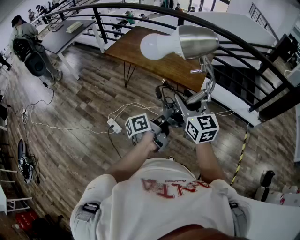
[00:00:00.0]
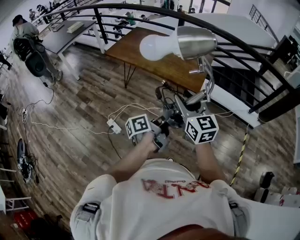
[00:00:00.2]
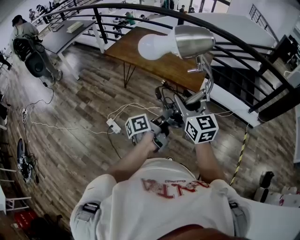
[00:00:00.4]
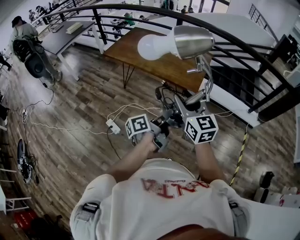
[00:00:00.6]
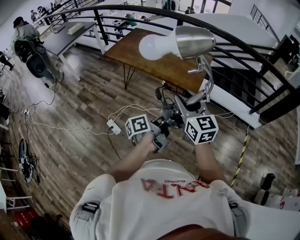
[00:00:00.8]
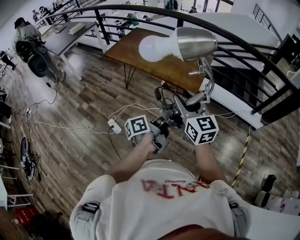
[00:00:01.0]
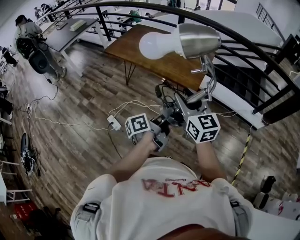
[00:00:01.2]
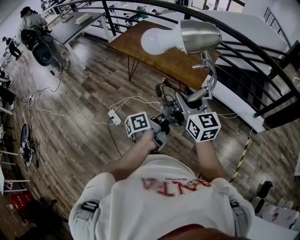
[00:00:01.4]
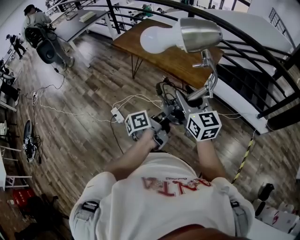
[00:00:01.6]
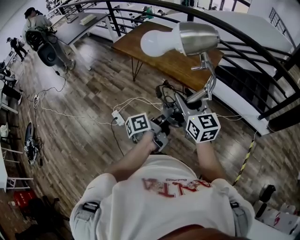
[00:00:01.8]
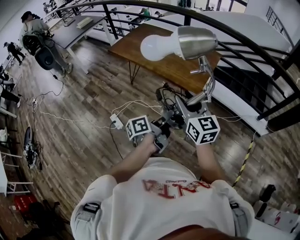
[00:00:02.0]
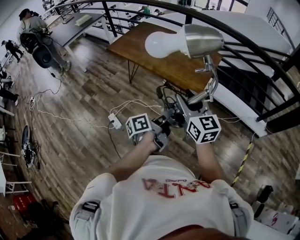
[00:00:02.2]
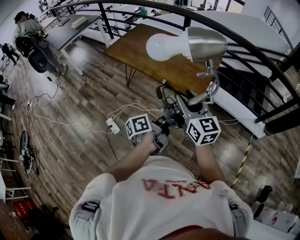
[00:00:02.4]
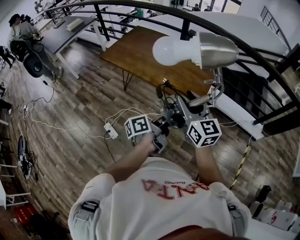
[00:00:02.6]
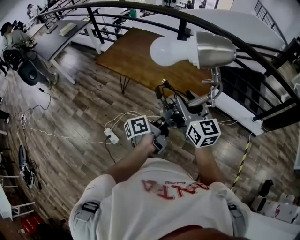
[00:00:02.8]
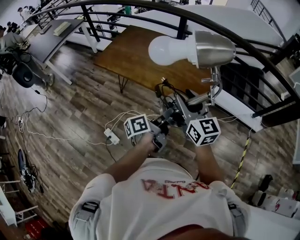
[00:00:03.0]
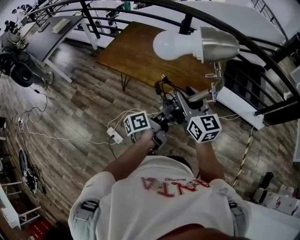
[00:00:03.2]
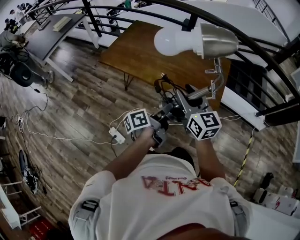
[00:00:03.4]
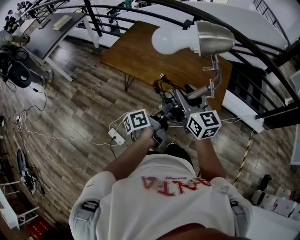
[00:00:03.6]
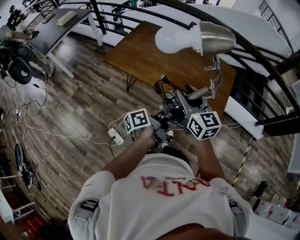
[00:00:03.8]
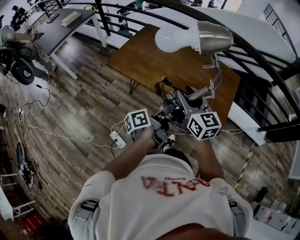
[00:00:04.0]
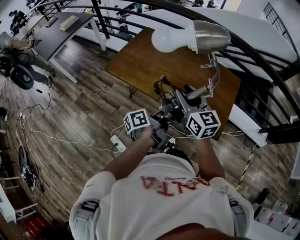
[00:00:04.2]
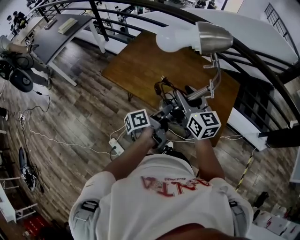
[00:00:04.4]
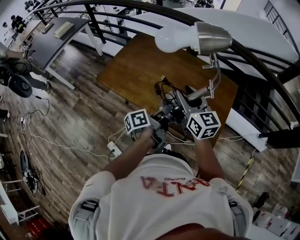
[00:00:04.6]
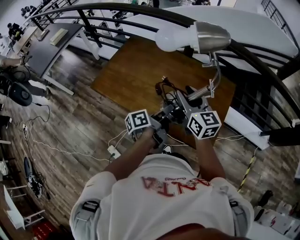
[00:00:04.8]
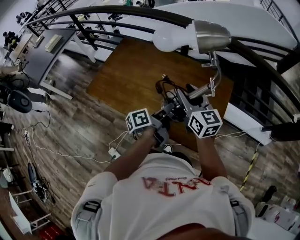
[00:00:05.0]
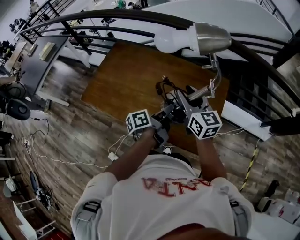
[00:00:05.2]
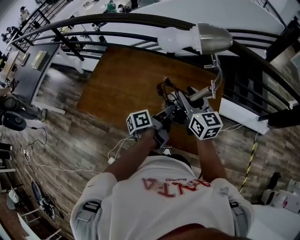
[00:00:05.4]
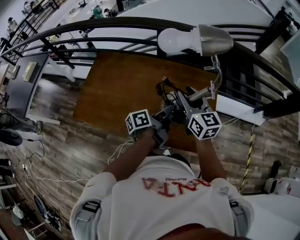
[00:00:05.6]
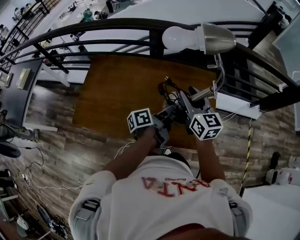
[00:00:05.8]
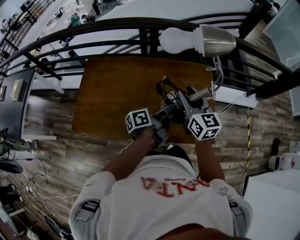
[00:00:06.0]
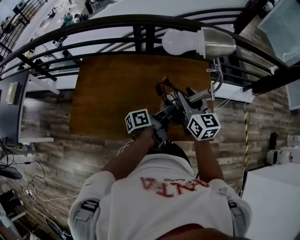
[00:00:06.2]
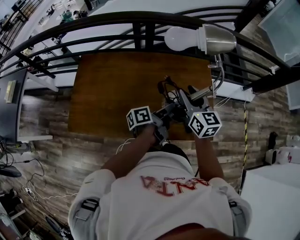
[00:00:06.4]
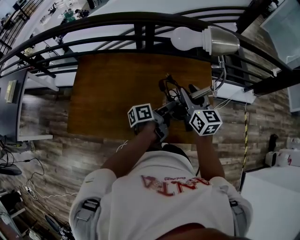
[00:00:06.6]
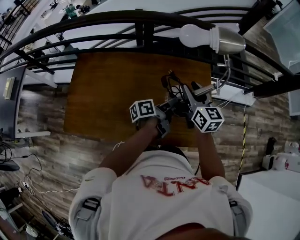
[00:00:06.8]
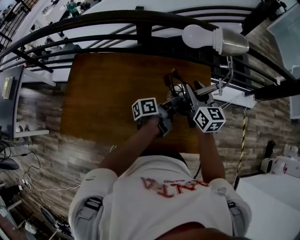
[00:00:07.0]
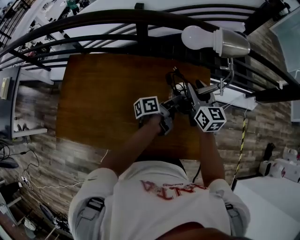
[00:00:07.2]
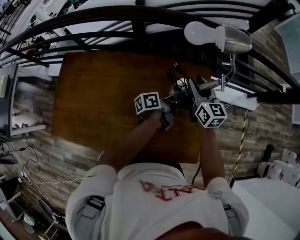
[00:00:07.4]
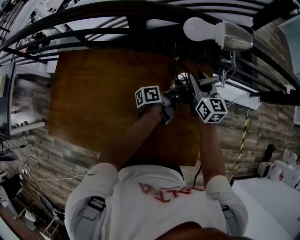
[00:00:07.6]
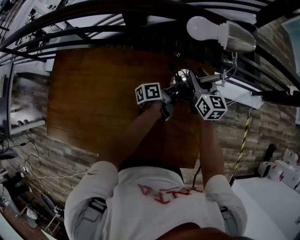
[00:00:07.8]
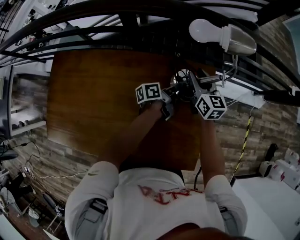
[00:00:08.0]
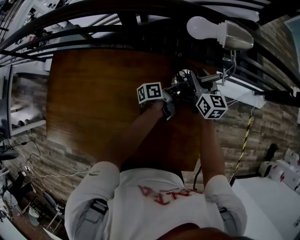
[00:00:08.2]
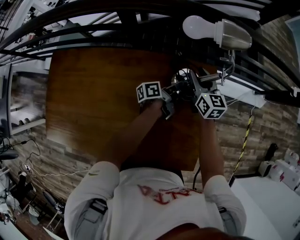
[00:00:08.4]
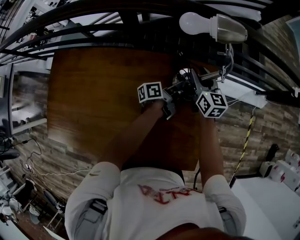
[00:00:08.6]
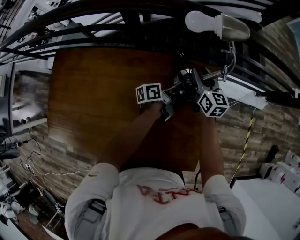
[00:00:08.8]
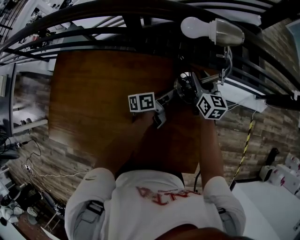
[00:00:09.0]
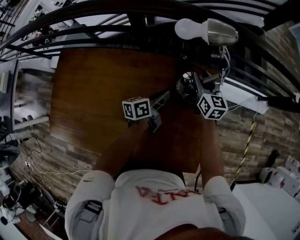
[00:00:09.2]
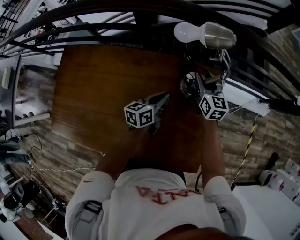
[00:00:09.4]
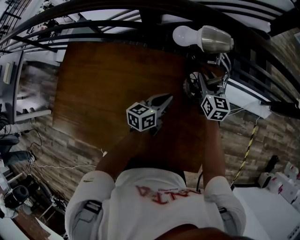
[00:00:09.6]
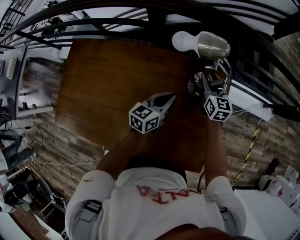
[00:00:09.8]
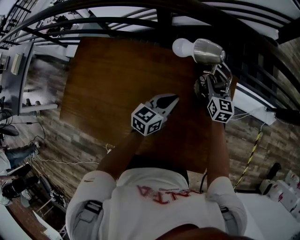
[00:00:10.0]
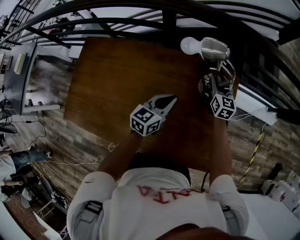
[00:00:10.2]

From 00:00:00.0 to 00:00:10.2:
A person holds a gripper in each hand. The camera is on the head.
From 00:00:00.0 to 00:00:01.4: The grippers both shift to the right by some 5 cm.
From 00:00:01.4 to 00:00:03.0: The right gripper goes about 20 cm forward; the left gripper is displaced forward and to the left by approximately 20 cm.
From 00:00:03.0 to 00:00:04.4: Both grippers travel together forward and to the left, roughly 25 cm.
From 00:00:04.4 to 00:00:05.8: The right gripper moves about 20 cm, and rotates approximately 30 degrees. The left gripper changes place by roughly 20 cm, and changes its angle by roughly 30 degrees.
From 00:00:05.8 to 00:00:07.2: Both grippers move forward, to the right and downward, roughly 20 cm.
From 00:00:07.2 to 00:00:08.8: The two grippers go some 15 cm forward and downward.
From 00:00:08.8 to 00:00:10.2: The left gripper heads backward, to the left and upward, covering some 20 cm, rolls clockwise, seen from behind, by some 50 degrees, and closes its fingers.

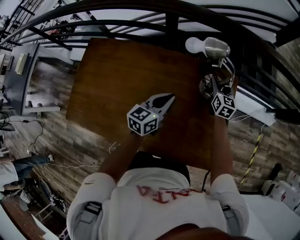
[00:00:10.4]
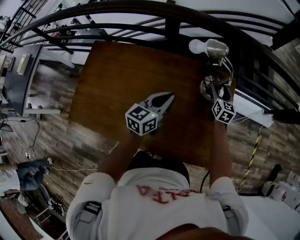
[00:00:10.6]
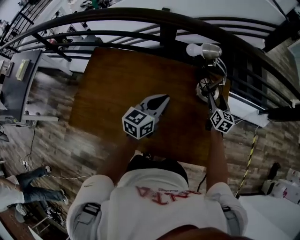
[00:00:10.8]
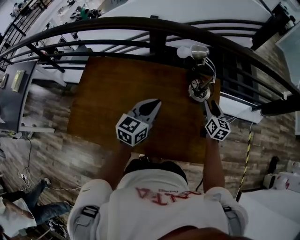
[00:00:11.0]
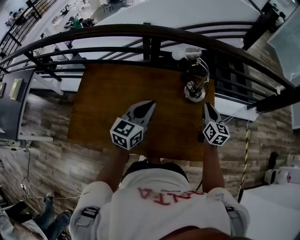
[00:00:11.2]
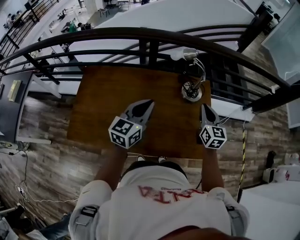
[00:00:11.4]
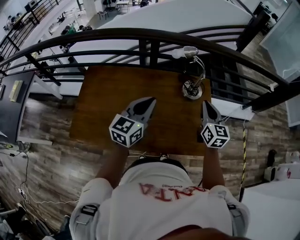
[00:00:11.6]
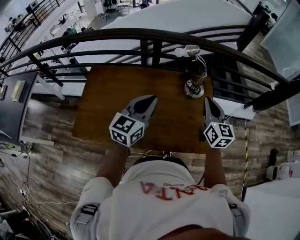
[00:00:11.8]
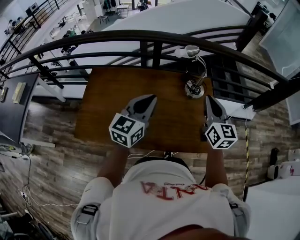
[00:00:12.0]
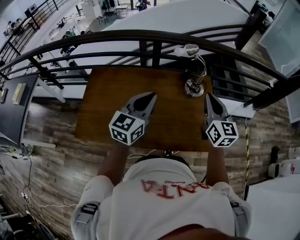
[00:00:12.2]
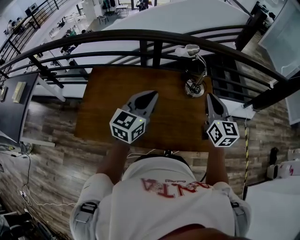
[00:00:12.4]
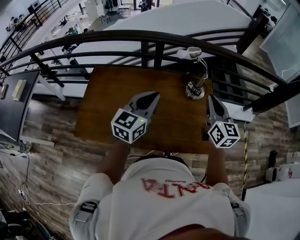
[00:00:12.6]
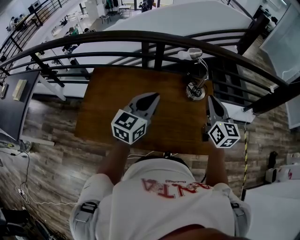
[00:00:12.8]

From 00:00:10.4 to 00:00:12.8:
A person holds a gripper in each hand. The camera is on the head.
From 00:00:10.4 to 00:00:11.6: The right gripper heads backward and upward, covering some 35 cm, and closes up. Meanwhile the left gripper heads upward and backward, covering some 20 cm, and turns by approximately 20 degrees.
From 00:00:11.6 to 00:00:12.8: The right gripper heads upward, covering some 10 cm.

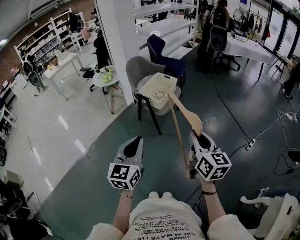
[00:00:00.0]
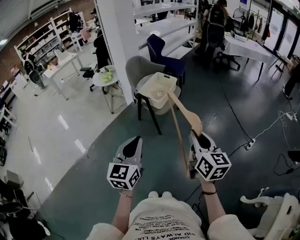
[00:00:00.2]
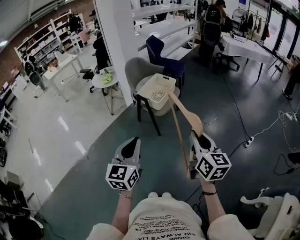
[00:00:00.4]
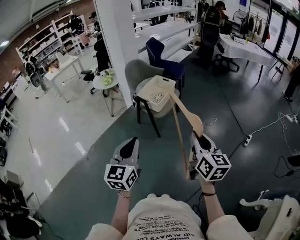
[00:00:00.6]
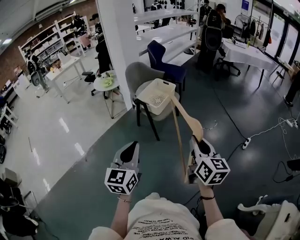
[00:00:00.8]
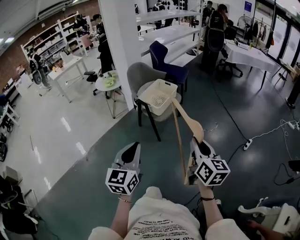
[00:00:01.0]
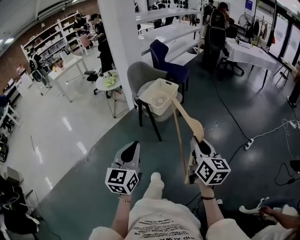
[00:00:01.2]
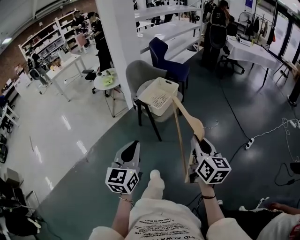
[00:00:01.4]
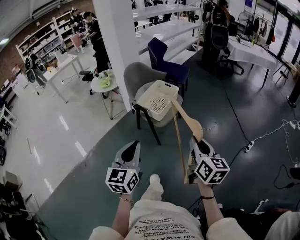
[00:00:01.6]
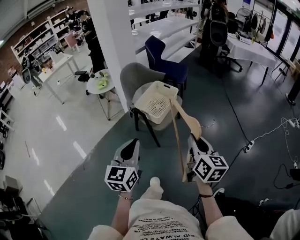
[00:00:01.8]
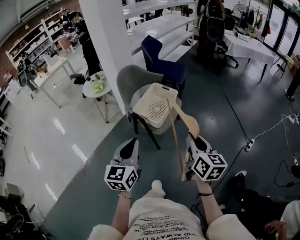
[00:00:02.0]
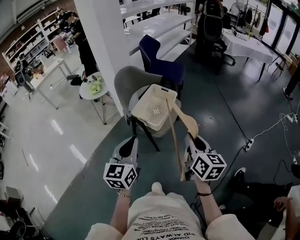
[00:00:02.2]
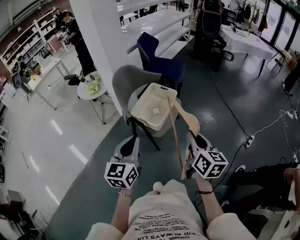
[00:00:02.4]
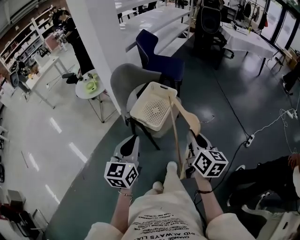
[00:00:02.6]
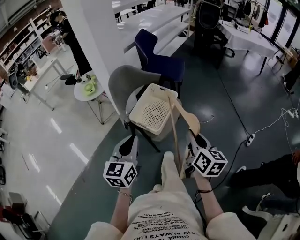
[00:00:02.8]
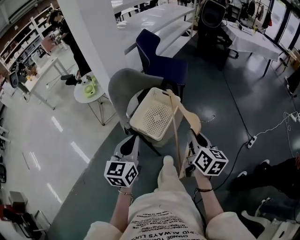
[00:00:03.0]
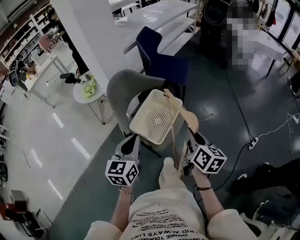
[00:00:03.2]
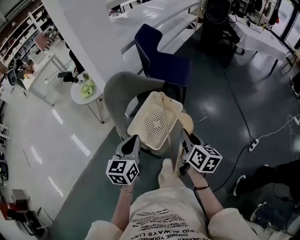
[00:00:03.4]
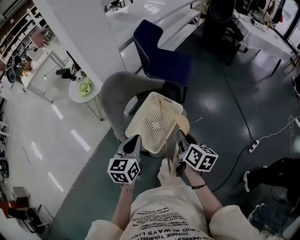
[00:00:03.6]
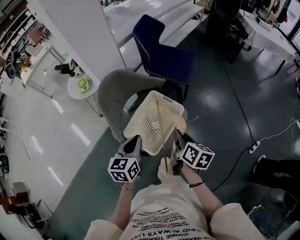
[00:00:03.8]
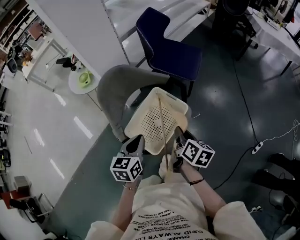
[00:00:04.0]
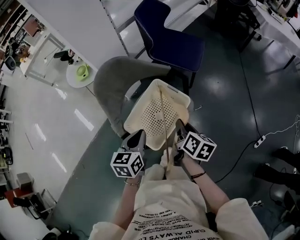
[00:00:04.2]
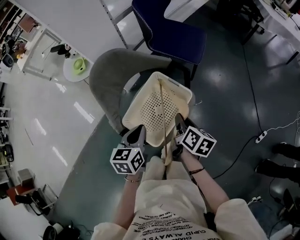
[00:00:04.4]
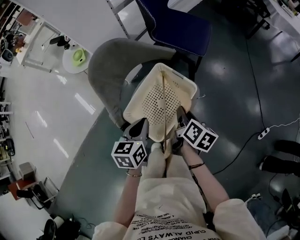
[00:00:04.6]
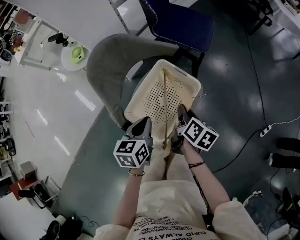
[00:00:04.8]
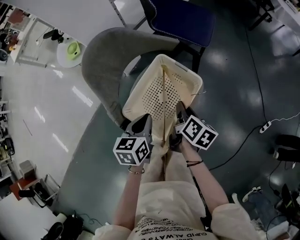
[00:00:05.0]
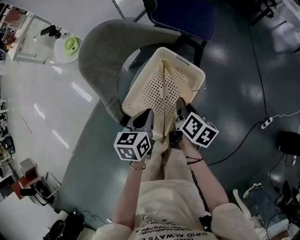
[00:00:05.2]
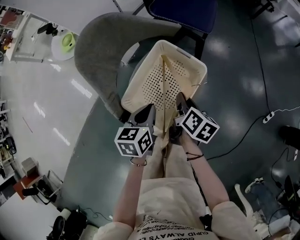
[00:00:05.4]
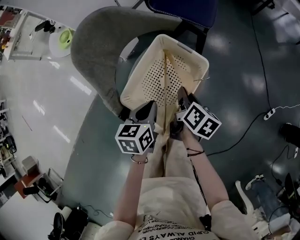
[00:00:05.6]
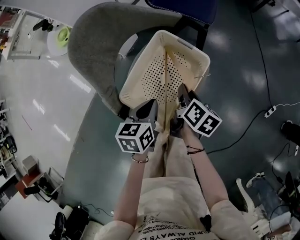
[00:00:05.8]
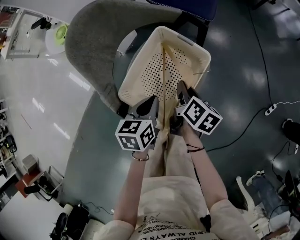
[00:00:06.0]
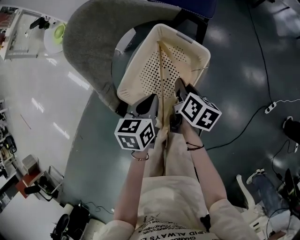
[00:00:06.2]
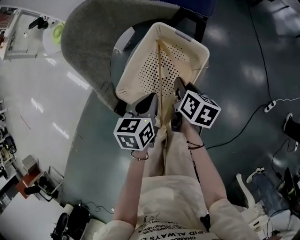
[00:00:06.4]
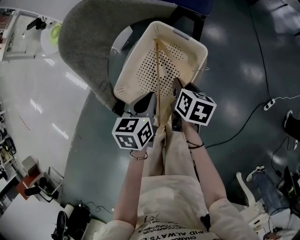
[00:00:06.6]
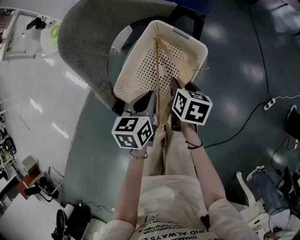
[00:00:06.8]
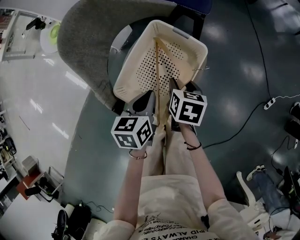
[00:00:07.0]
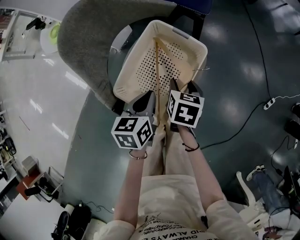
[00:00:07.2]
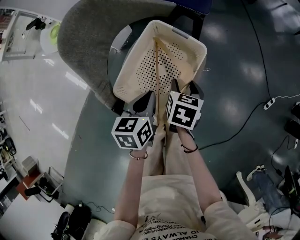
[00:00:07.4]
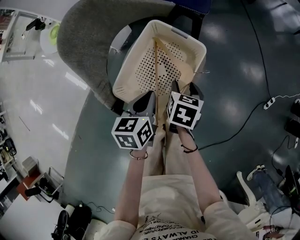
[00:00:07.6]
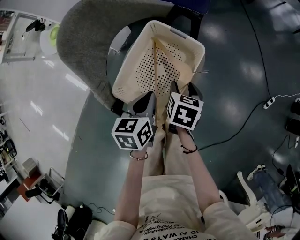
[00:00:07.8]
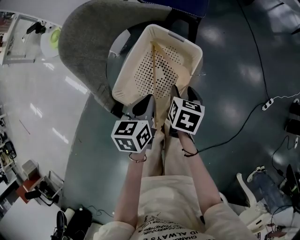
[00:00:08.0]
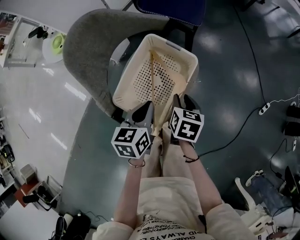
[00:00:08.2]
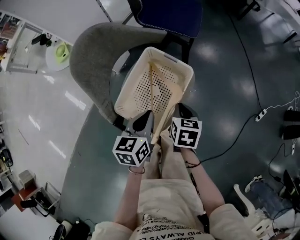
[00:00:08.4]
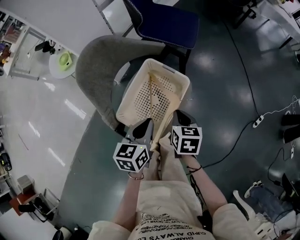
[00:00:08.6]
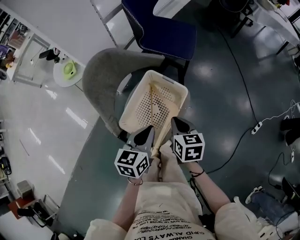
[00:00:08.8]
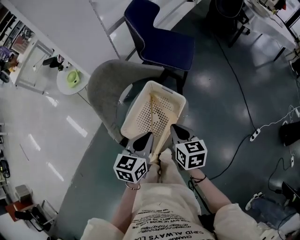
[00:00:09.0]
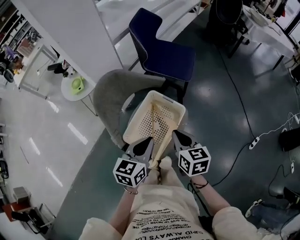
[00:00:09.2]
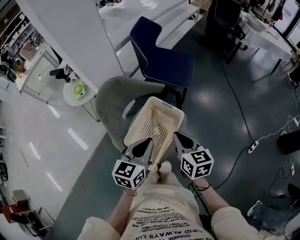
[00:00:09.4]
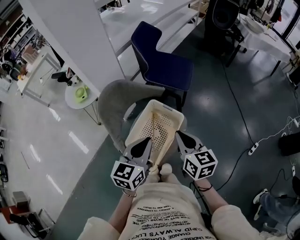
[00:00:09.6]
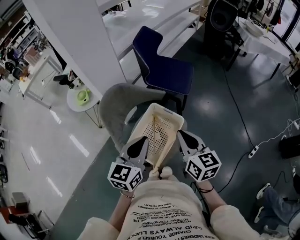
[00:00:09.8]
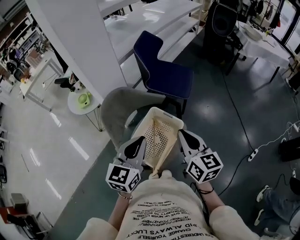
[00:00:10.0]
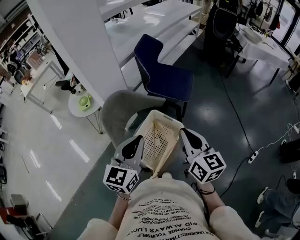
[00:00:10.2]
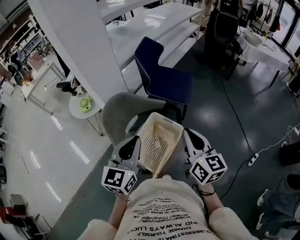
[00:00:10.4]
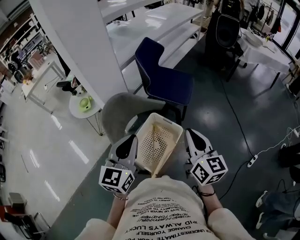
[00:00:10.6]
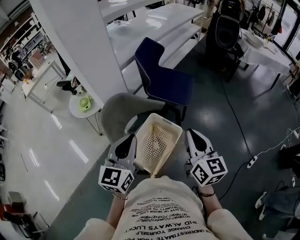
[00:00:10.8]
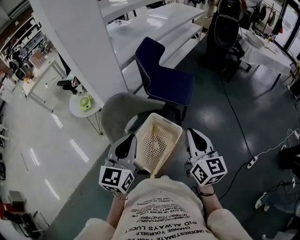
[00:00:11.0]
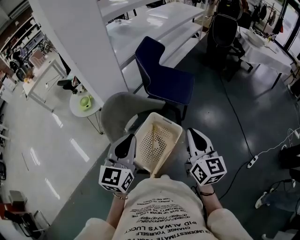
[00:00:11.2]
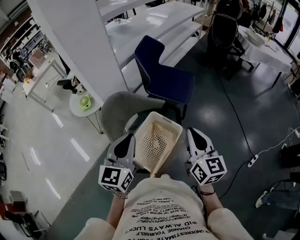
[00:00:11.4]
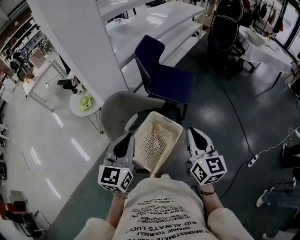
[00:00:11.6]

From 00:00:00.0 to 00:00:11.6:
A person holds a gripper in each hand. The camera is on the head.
From 00:00:00.0 to 00:00:01.4: The right gripper is displaced forward by roughly 5 cm.
From 00:00:01.4 to 00:00:02.8: The grippers both shift forward by approximately 30 cm.
From 00:00:02.8 to 00:00:04.4: The grippers both shift forward and downward by approximately 30 cm. The right gripper changes its angle by about 30 degrees. Meanwhile the left gripper changes its angle by approximately 30 degrees.
From 00:00:04.4 to 00:00:05.8: Both grippers travel together downward, approximately 10 cm.
From 00:00:05.8 to 00:00:07.2: The right gripper swivels about 30 degrees, and opens its fingers.
From 00:00:07.2 to 00:00:08.8: Both grippers travel together upward, approximately 10 cm. The right gripper rotates some 20 degrees, and closes its fingers.
From 00:00:08.8 to 00:00:10.2: Both grippers move upward, roughly 20 cm. The left gripper swivels roughly 30 degrees. The right gripper points its fingers roughly 30 degrees further upward.
From 00:00:10.2 to 00:00:11.6: The grippers make only small movements.
